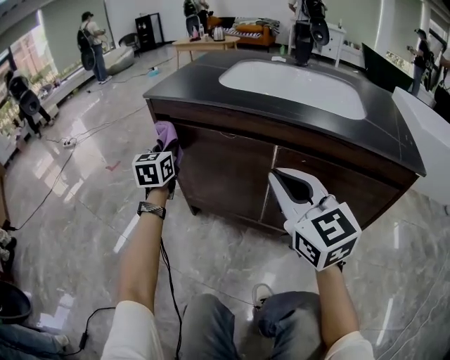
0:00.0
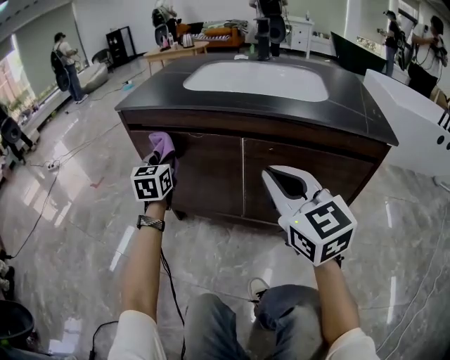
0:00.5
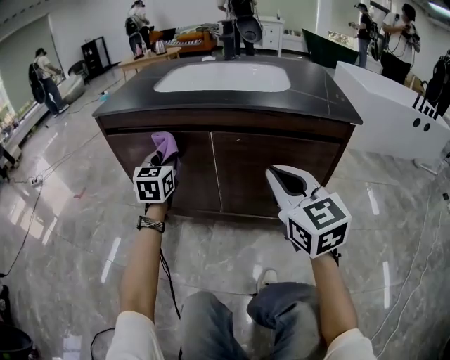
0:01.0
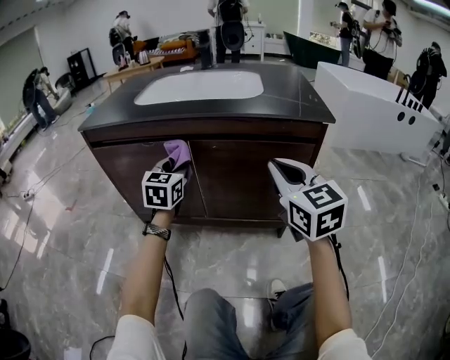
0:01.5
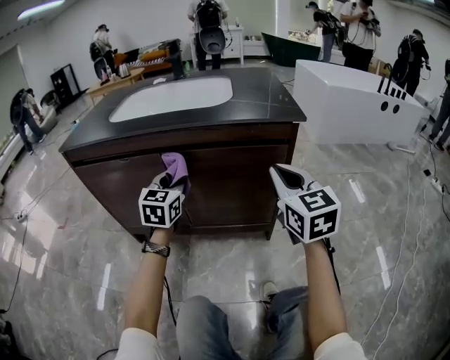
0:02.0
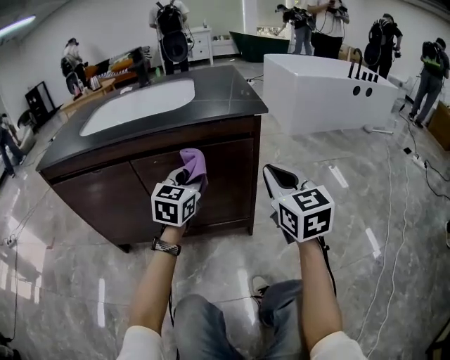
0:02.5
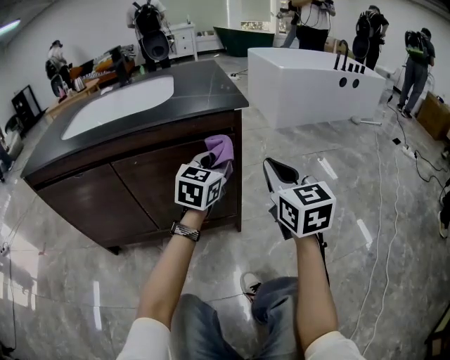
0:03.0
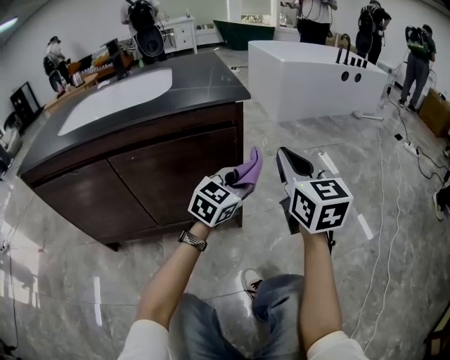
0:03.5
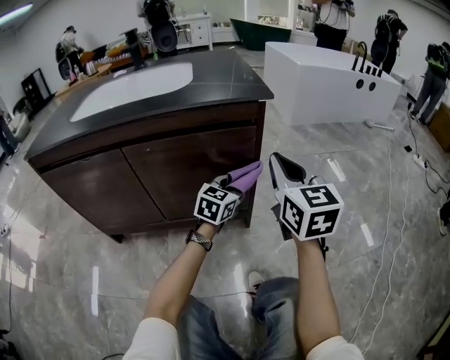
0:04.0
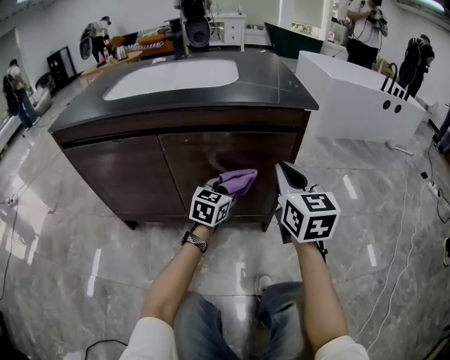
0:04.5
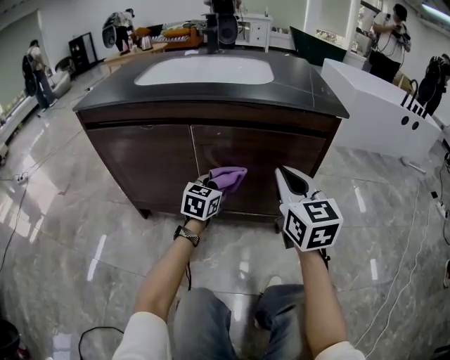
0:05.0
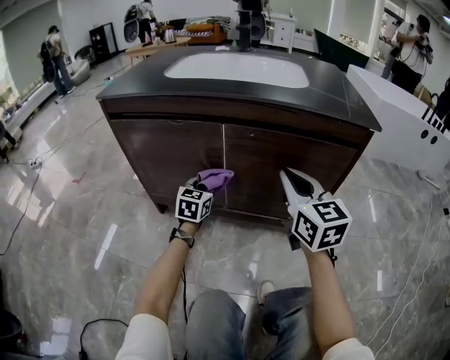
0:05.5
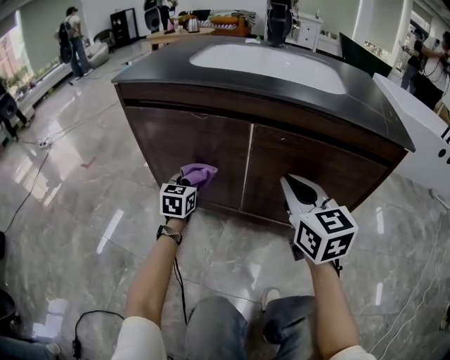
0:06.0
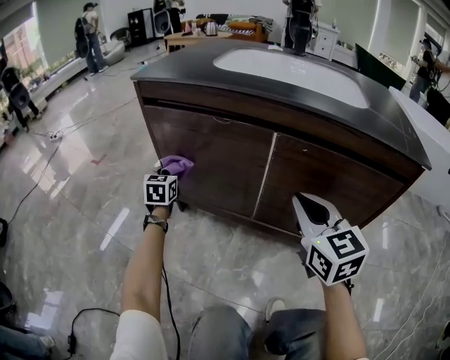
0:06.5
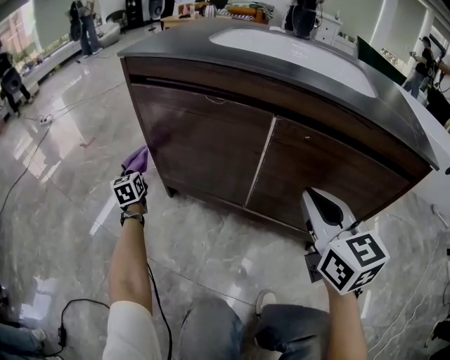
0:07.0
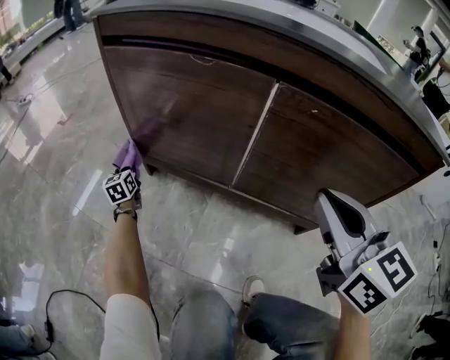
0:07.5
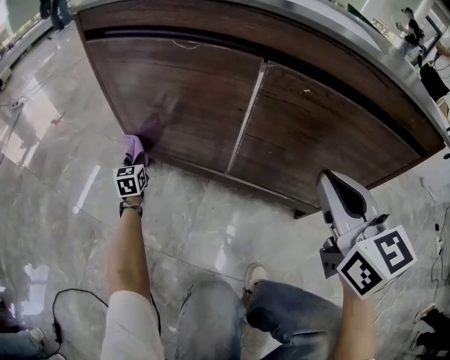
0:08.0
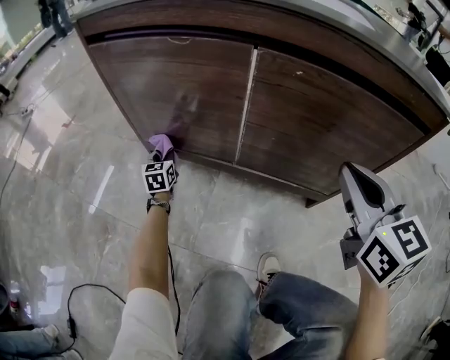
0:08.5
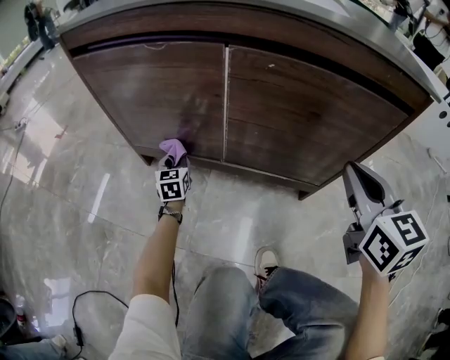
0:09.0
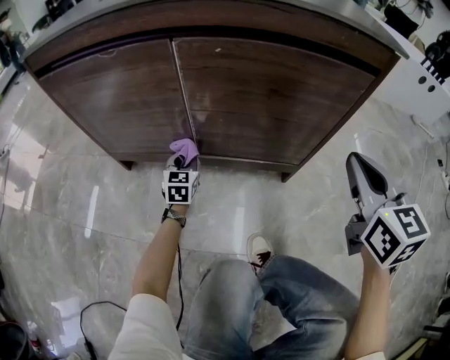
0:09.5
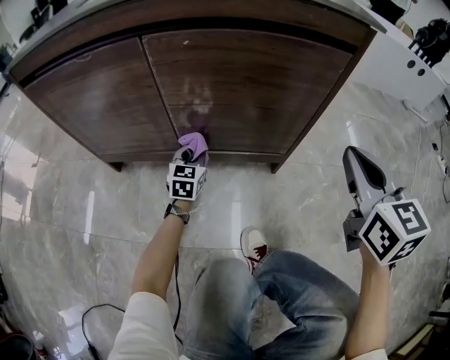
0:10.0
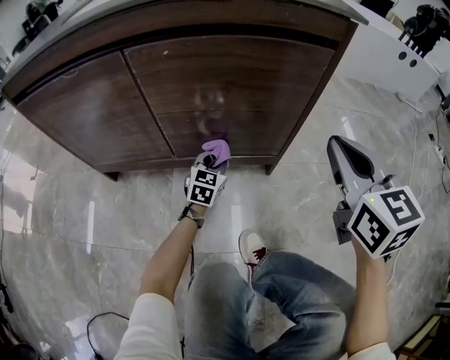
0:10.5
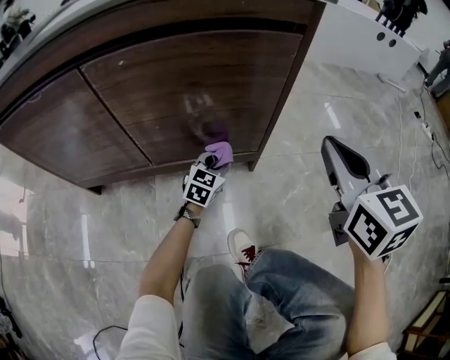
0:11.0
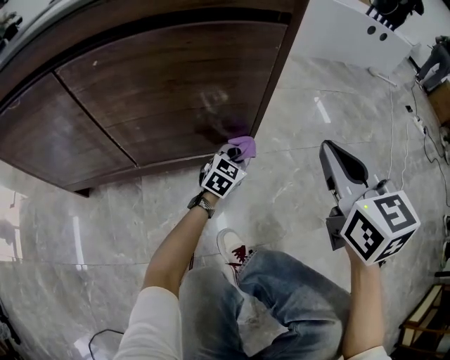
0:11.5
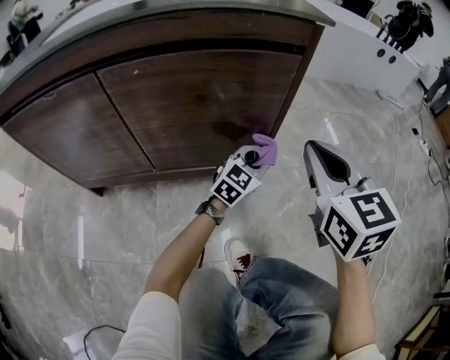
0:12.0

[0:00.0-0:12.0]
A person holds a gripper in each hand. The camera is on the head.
0:00.0 to 0:02.0: The left gripper ends up some 40 cm from where it was, and turns by some 30 degrees. Meanwhile the right gripper changes place by some 30 cm, and changes its angle by roughly 30 degrees.
0:02.0 to 0:04.0: The left gripper ends up about 30 cm from where it was, and turns by some 30 degrees.
0:04.0 to 0:06.0: The left gripper moves roughly 50 cm, and changes its angle by approximately 50 degrees. Meanwhile the right gripper ends up roughly 30 cm from where it was, and changes its angle by some 30 degrees.
0:06.0 to 0:08.0: The left gripper goes roughly 25 cm downward and to the left; the right gripper changes place by roughly 5 cm.
0:08.0 to 0:10.0: The left gripper changes place by about 40 cm, and rotates roughly 40 degrees. Meanwhile the right gripper moves about 25 cm, and turns by roughly 20 degrees.
0:10.0 to 0:12.0: The left gripper goes some 30 cm to the right, and swivels roughly 40 degrees.

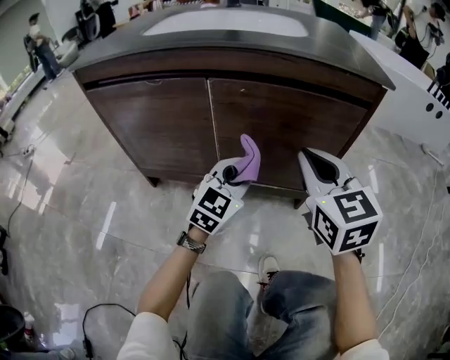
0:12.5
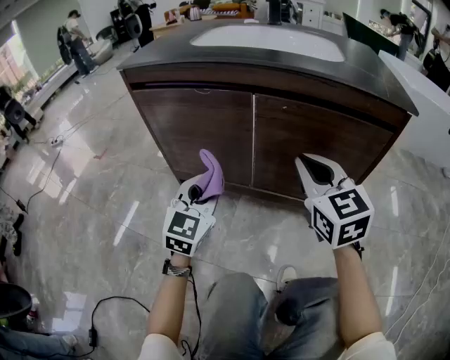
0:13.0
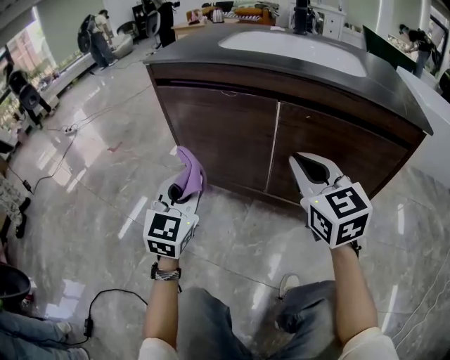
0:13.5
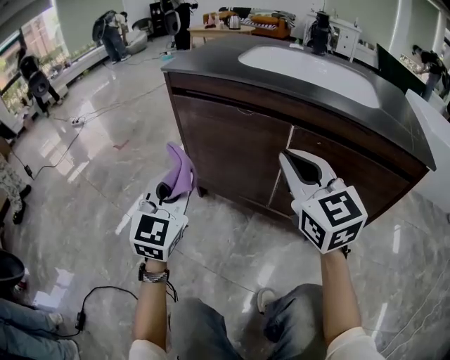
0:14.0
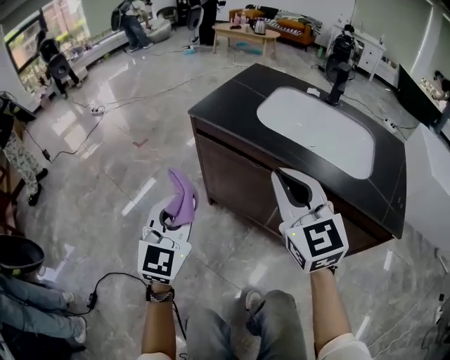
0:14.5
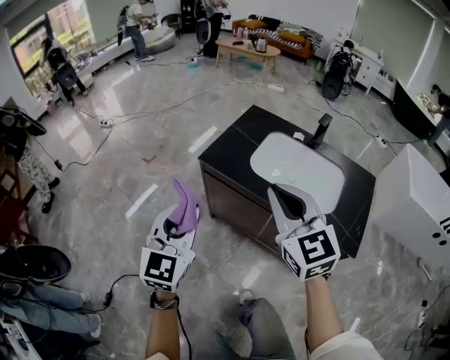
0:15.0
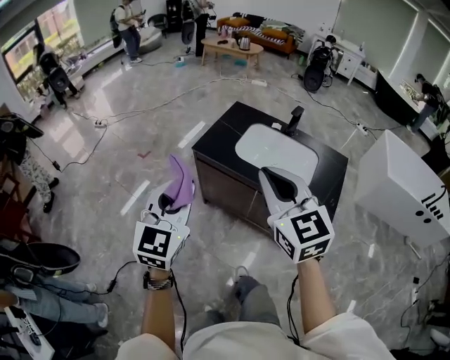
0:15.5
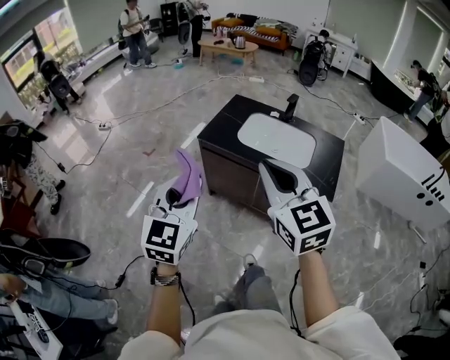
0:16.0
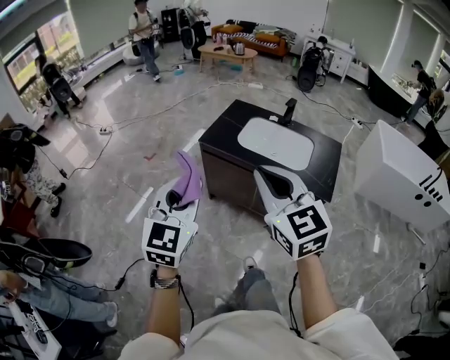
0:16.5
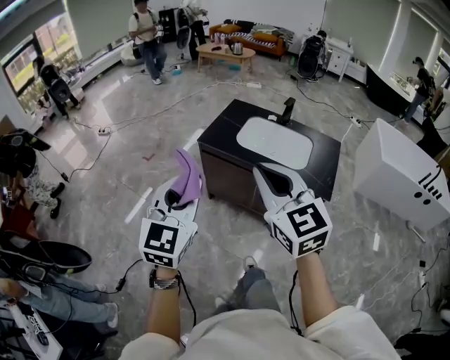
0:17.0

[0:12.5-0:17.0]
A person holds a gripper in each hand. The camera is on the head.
0:12.5 to 0:14.5: The left gripper moves roughly 50 cm, and turns by some 50 degrees; the right gripper moves upward, approximately 25 cm, and turns by approximately 30 degrees.
0:14.5 to 0:17.0: The grippers both shift upward and backward by roughly 50 cm.

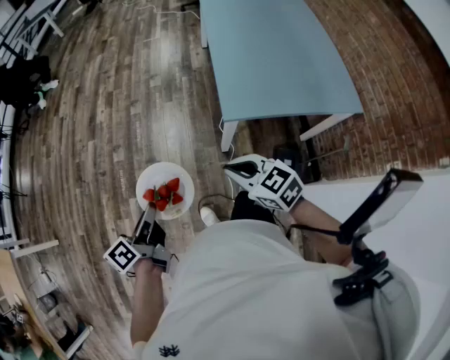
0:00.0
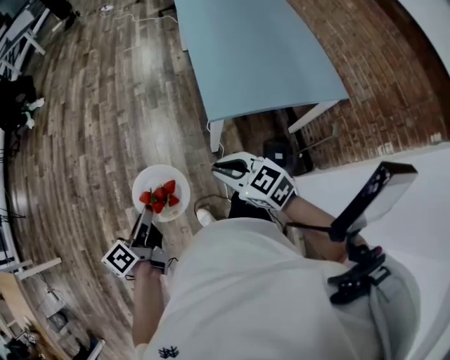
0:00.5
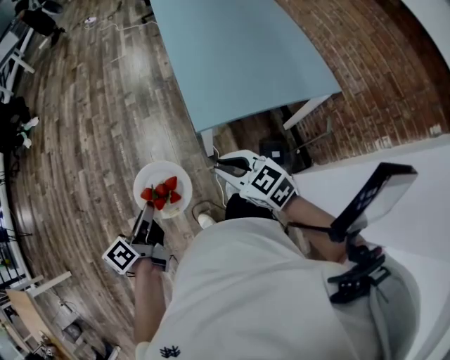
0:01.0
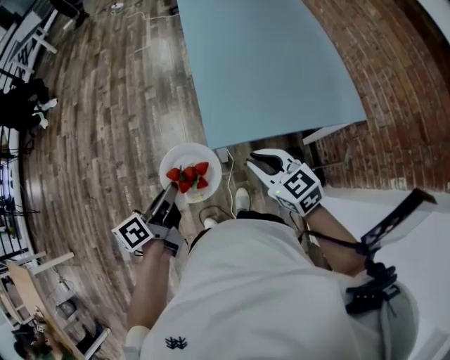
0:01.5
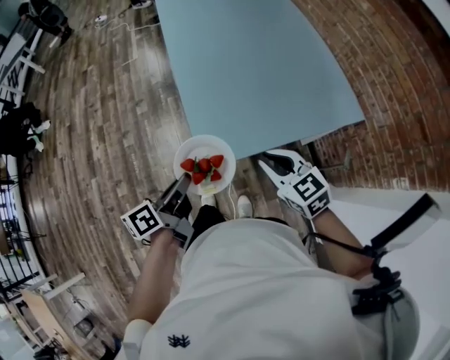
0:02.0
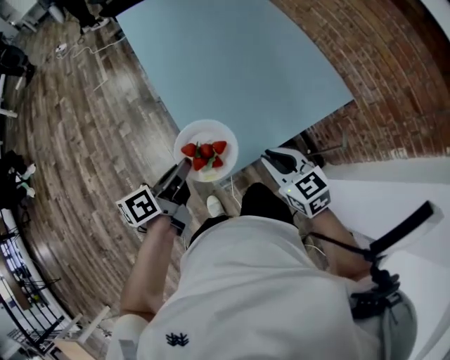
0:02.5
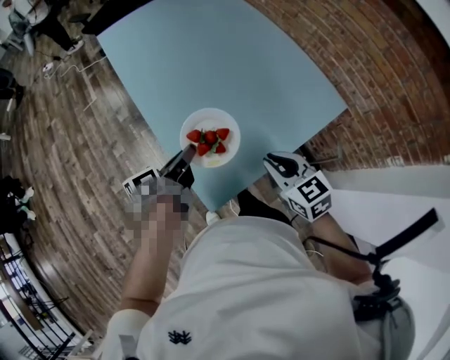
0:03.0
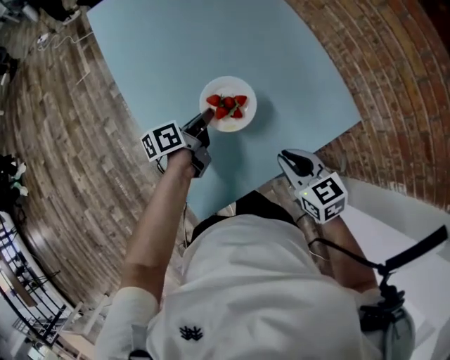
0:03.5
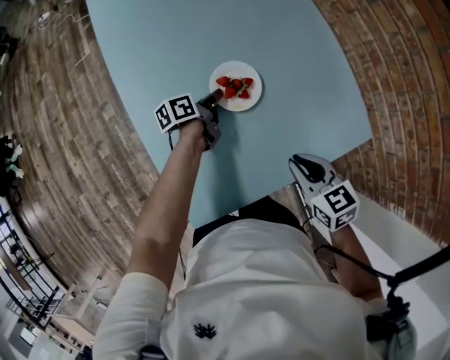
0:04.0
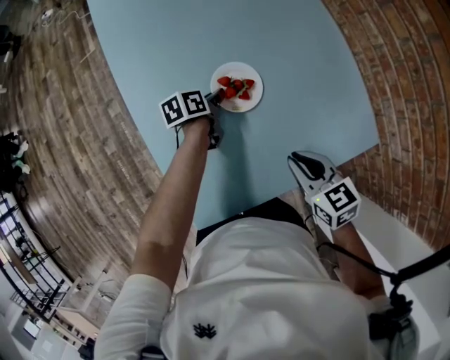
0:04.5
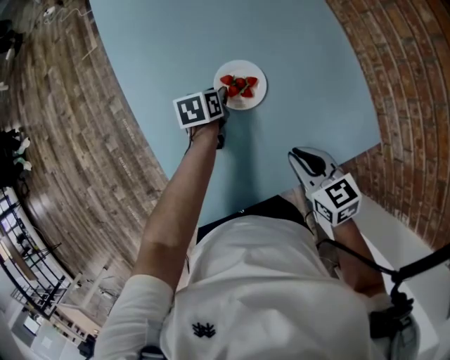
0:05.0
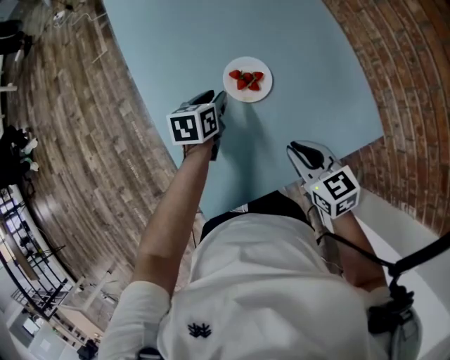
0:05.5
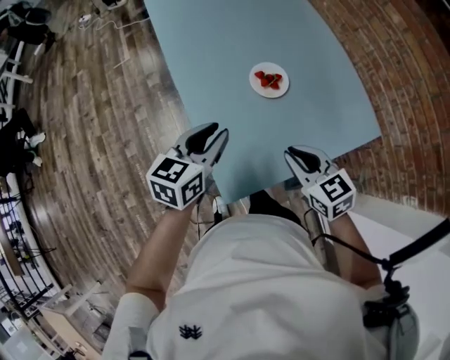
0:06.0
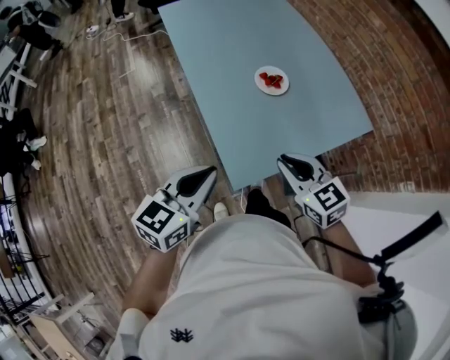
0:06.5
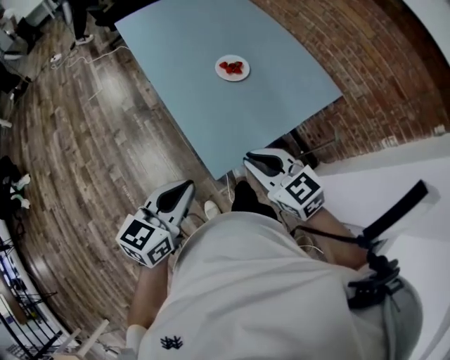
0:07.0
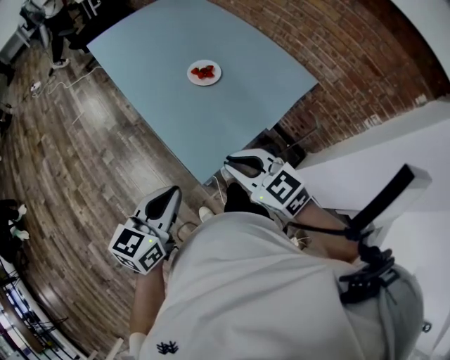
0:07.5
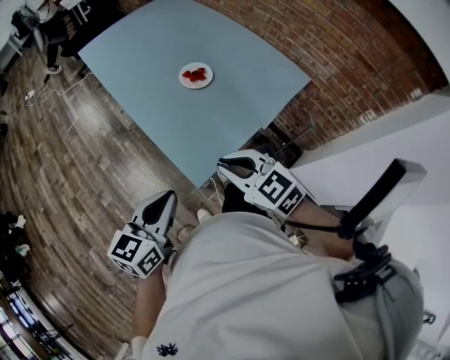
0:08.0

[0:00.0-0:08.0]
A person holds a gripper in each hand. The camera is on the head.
0:00.0 to 0:02.0: Both grippers move to the right and forward, approximately 30 cm. The left gripper turns by about 20 degrees; the right gripper changes its angle by roughly 20 degrees.
0:02.0 to 0:04.0: The left gripper travels forward and downward by roughly 50 cm, and rotates roughly 20 degrees; the right gripper goes approximately 25 cm forward and to the right, and changes its angle by about 20 degrees.
0:04.0 to 0:06.0: The right gripper moves to the left, backward and upward, approximately 15 cm. Meanwhile the left gripper is displaced upward, backward and to the left by approximately 35 cm, rolls clockwise, seen from behind, by about 50 degrees, and opens its fingers.
0:06.0 to 0:08.0: The right gripper goes approximately 20 cm backward and to the left. Meanwhile the left gripper heads backward, covering approximately 25 cm, and closes its fingers.

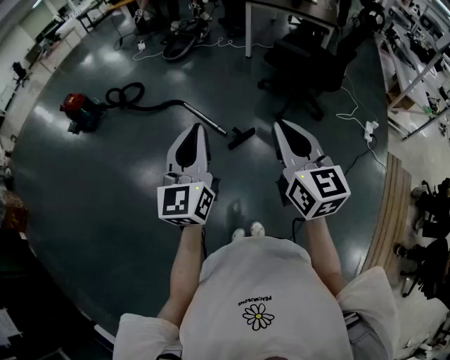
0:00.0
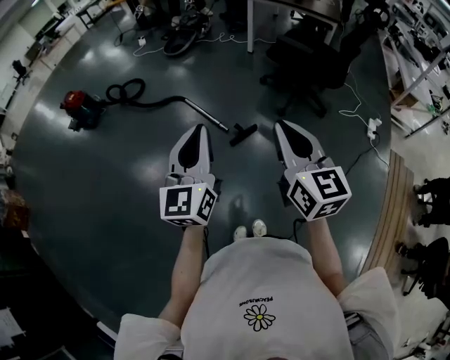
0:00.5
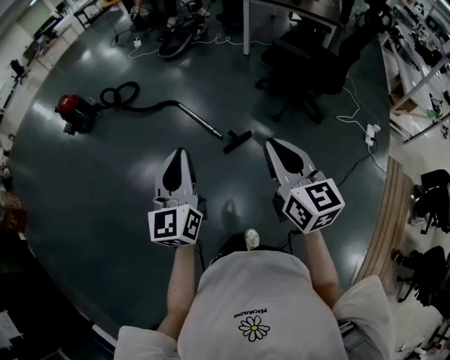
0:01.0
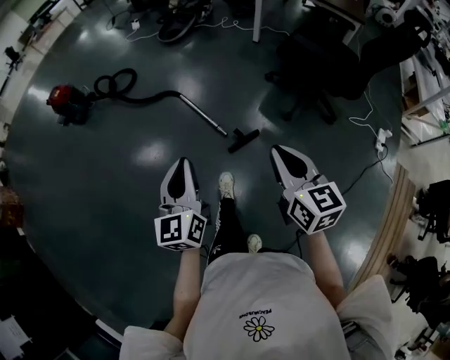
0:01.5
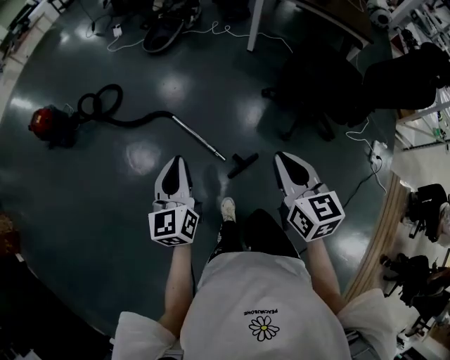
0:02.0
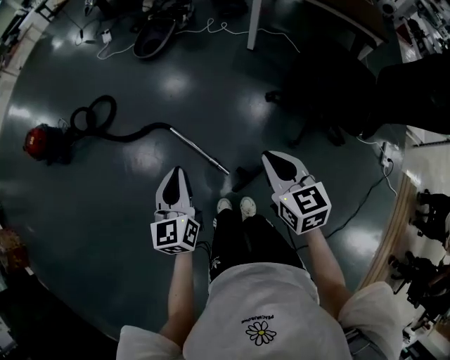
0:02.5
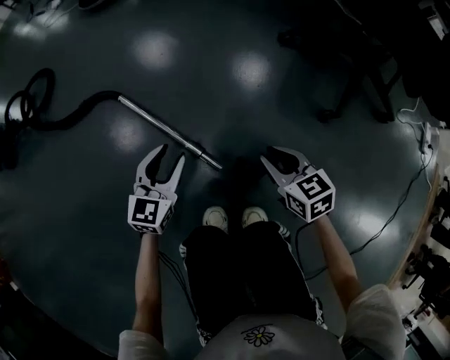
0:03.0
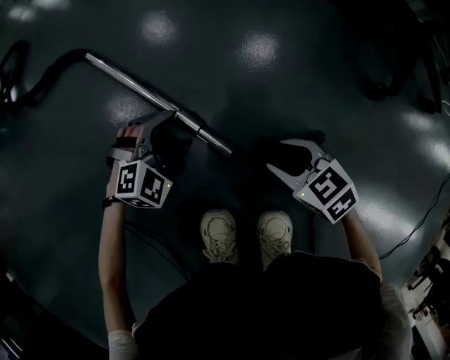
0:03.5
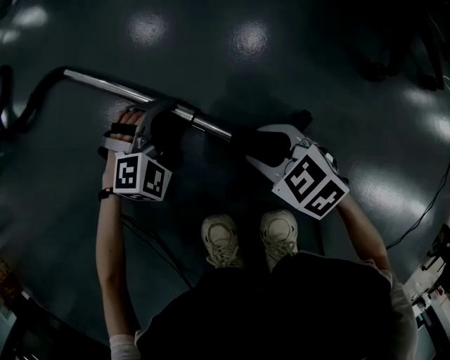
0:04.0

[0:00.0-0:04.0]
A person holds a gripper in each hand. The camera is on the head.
0:00.0 to 0:02.0: The two grippers travel together, forward, some 40 cm. The left gripper changes its angle by some 20 degrees.
0:02.0 to 0:04.0: The two grippers go some 90 cm downward. The right gripper points its fingers roughly 30 degrees further downward, and opens, while the left gripper angles its fingers downward, by roughly 40 degrees, and opens.
